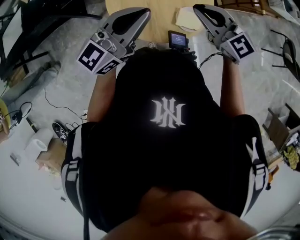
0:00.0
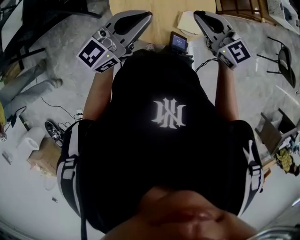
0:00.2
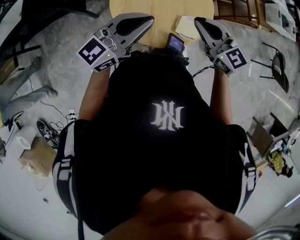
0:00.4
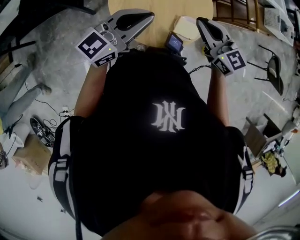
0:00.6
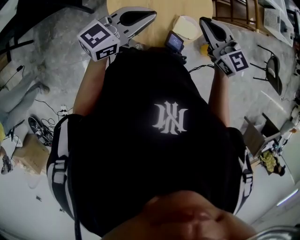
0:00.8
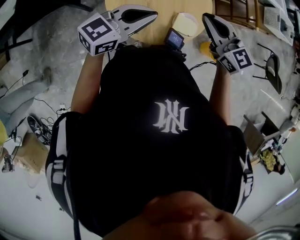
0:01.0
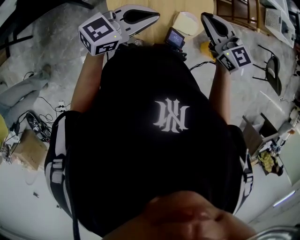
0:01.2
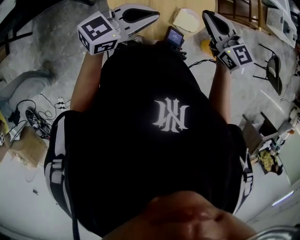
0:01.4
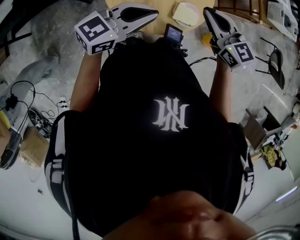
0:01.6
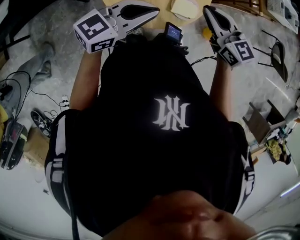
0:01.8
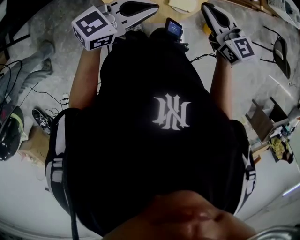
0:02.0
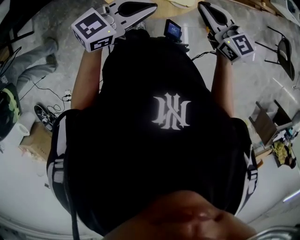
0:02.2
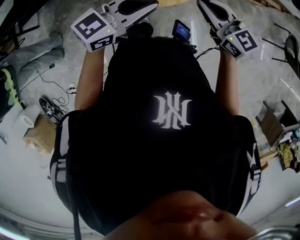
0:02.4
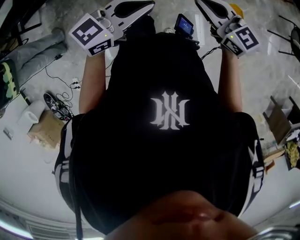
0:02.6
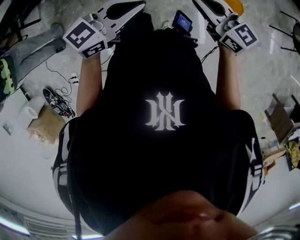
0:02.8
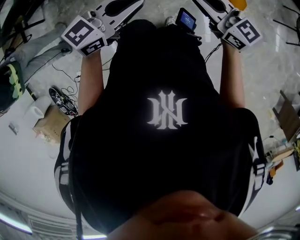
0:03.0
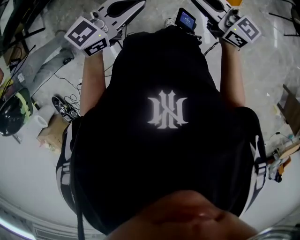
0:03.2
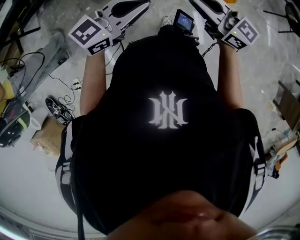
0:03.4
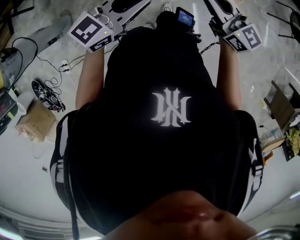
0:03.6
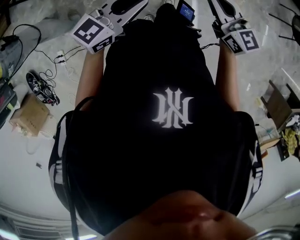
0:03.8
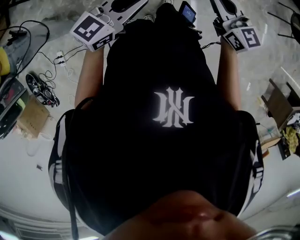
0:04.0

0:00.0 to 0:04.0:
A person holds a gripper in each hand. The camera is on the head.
0:00.0 to 0:01.4: The left gripper shifts roughly 10 cm downward, and turns by approximately 20 degrees.
0:01.4 to 0:02.6: Both grippers move backward and to the right, about 20 cm.
0:02.6 to 0:04.0: The two grippers go some 30 cm backward.

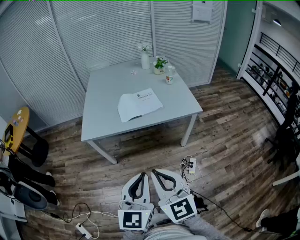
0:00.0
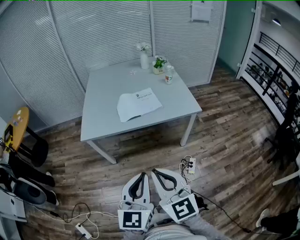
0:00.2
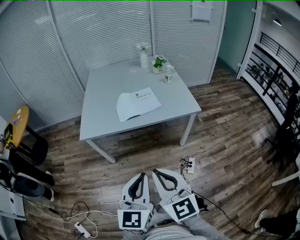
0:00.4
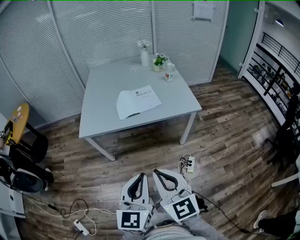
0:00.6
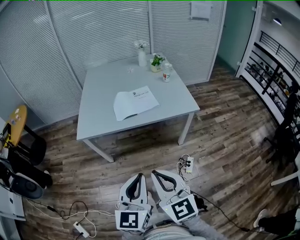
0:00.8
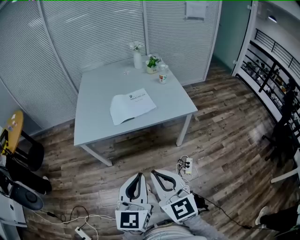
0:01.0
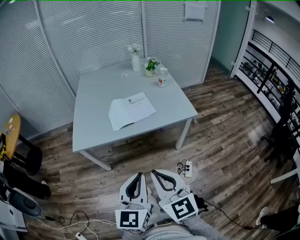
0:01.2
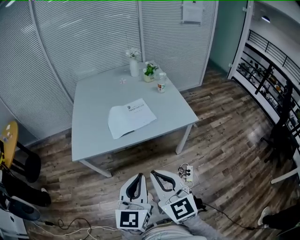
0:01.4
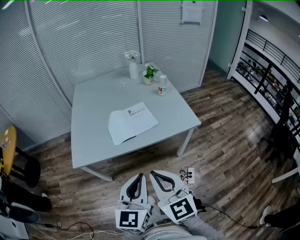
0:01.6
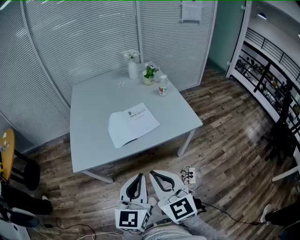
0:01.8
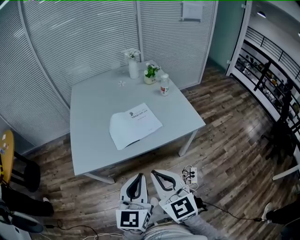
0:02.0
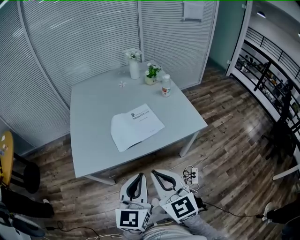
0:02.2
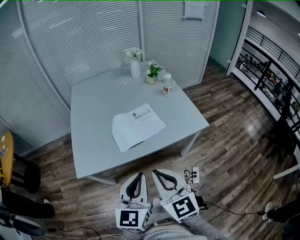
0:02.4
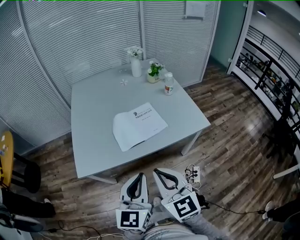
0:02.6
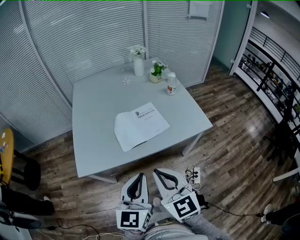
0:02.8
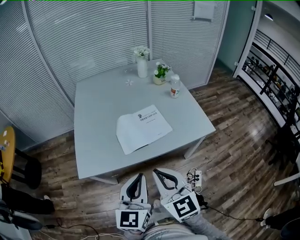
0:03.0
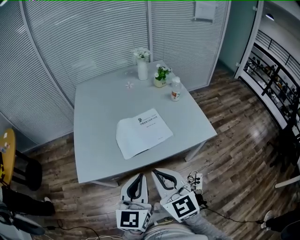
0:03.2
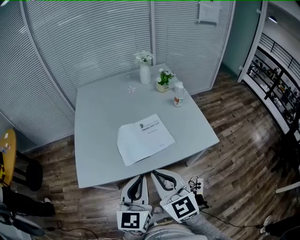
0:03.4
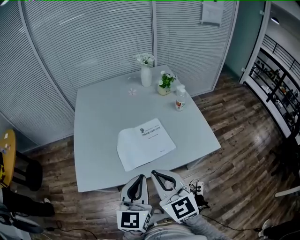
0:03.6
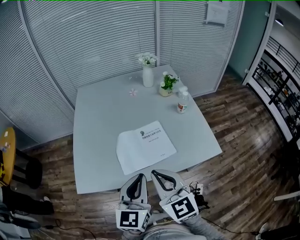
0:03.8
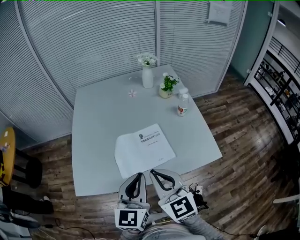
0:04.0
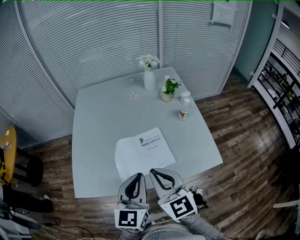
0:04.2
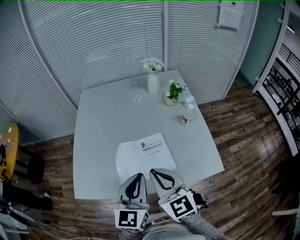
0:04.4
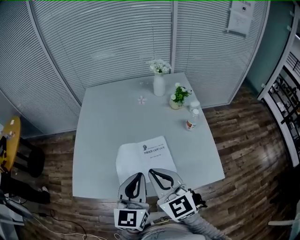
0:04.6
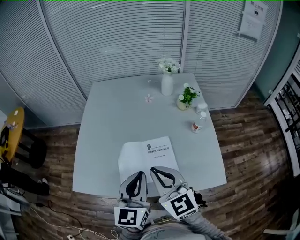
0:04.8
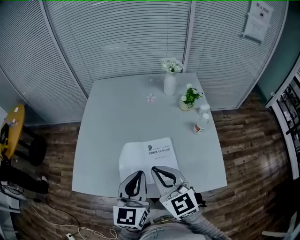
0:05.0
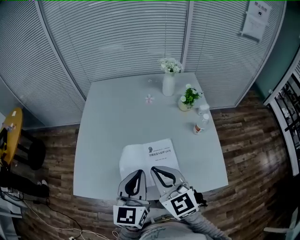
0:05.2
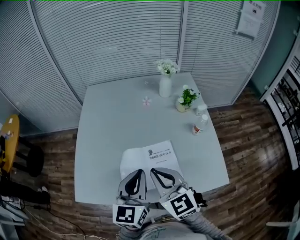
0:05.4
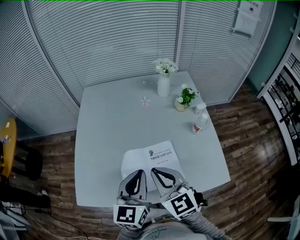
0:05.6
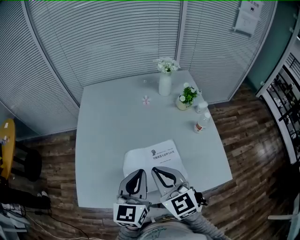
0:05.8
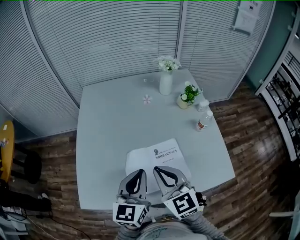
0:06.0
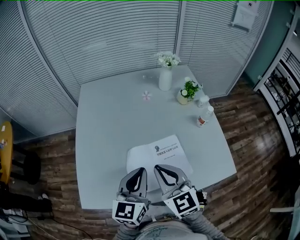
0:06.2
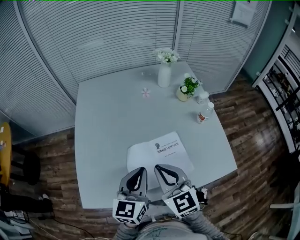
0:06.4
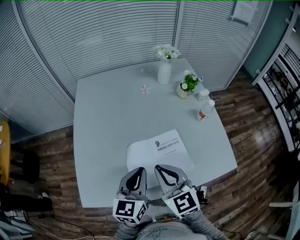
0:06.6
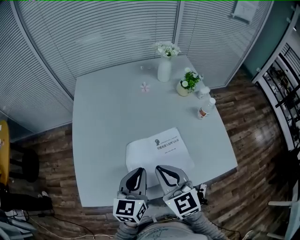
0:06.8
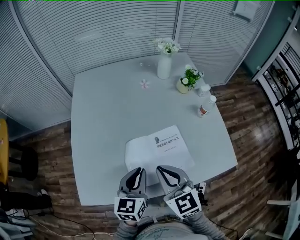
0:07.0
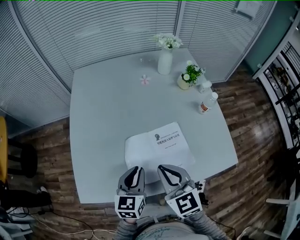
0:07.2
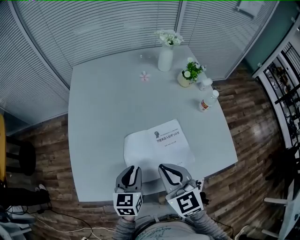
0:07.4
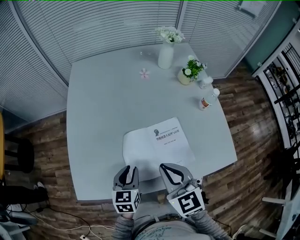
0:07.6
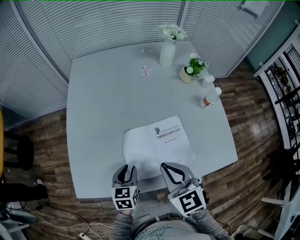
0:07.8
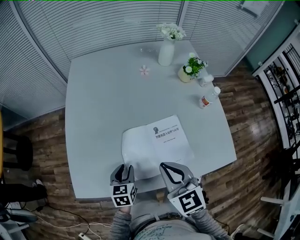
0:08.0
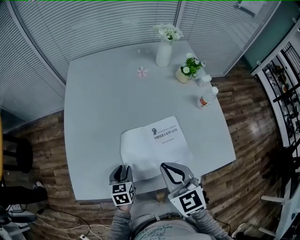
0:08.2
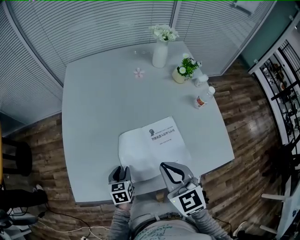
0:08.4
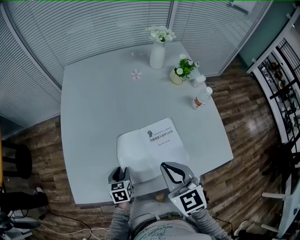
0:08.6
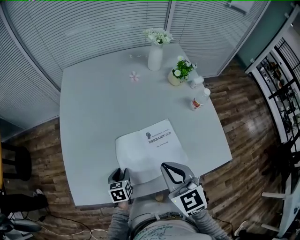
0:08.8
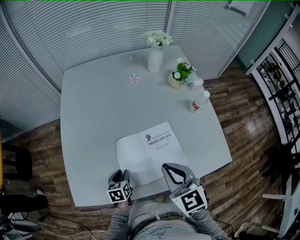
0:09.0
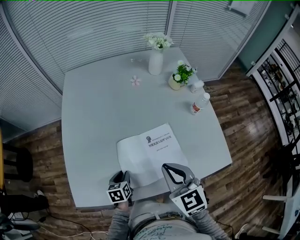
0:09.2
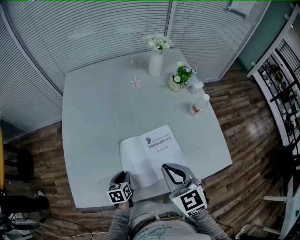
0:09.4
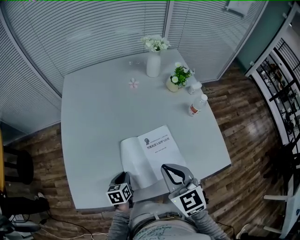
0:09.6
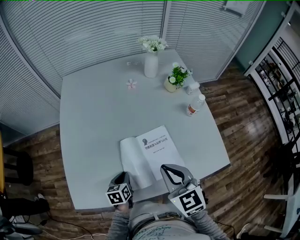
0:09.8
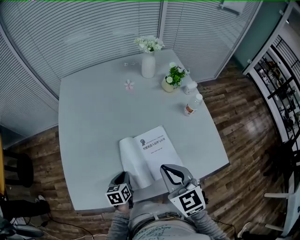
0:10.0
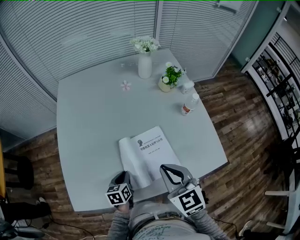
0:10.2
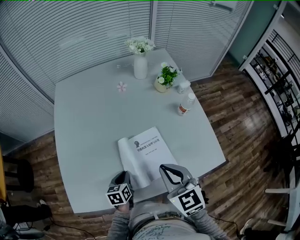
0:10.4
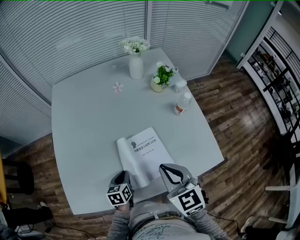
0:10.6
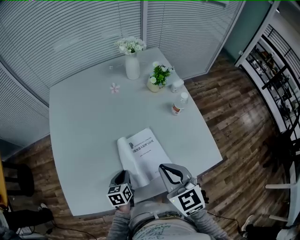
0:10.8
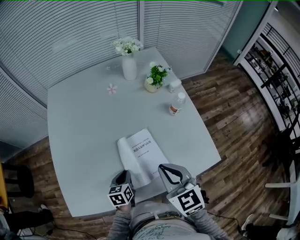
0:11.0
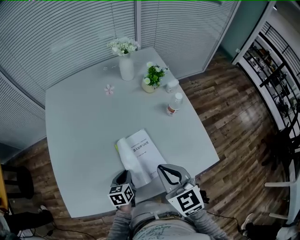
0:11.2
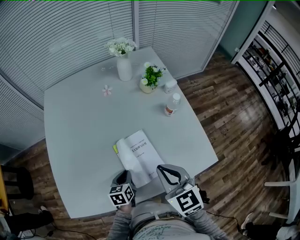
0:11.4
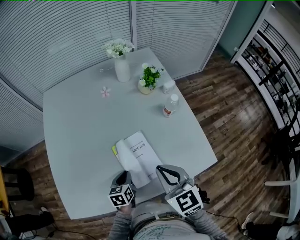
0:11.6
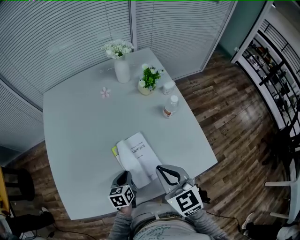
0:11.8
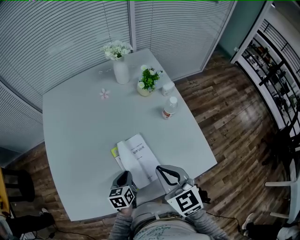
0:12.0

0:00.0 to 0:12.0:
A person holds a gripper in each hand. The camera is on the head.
0:00.0 to 0:01.6: Both grippers travel together forward, some 15 cm.
0:01.6 to 0:03.0: The grippers both shift forward and to the left by approximately 15 cm.
0:03.0 to 0:04.4: Both grippers travel together forward, about 25 cm.
0:04.4 to 0:06.0: Both grippers move forward and to the left, about 15 cm.
0:06.0 to 0:07.6: The left gripper goes roughly 20 cm downward, turns by about 30 degrees, and opens its fingers, while the right gripper shifts approximately 5 cm downward.
0:07.6 to 0:09.0: The left gripper shifts some 10 cm downward.
0:09.0 to 0:10.4: Both grippers move to the right, about 5 cm. The left gripper closes its fingers.
0:10.4 to 0:12.0: Both grippers move to the right, roughly 10 cm.

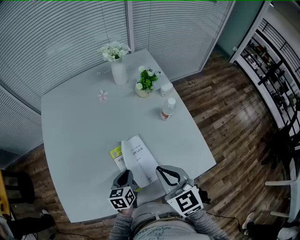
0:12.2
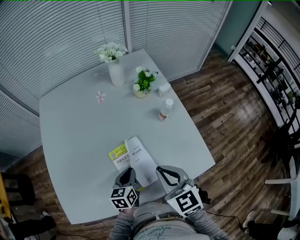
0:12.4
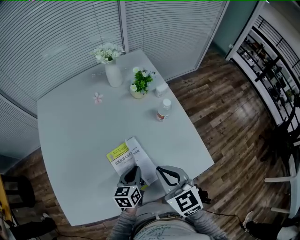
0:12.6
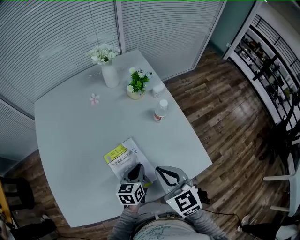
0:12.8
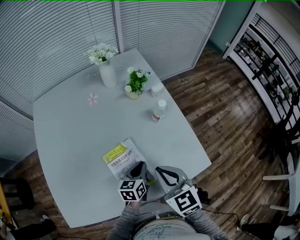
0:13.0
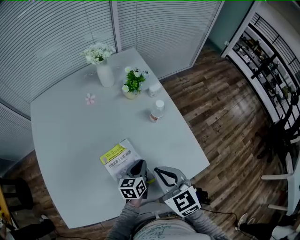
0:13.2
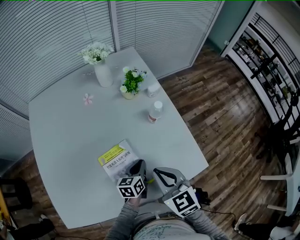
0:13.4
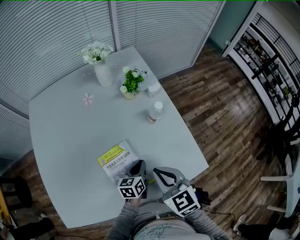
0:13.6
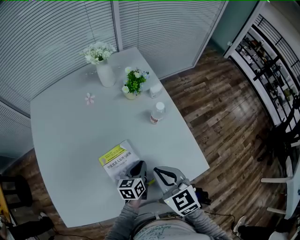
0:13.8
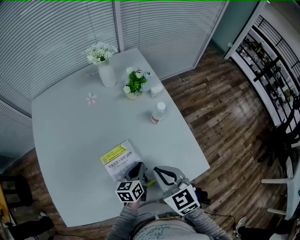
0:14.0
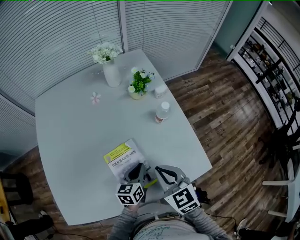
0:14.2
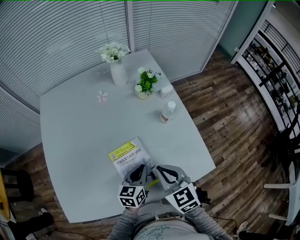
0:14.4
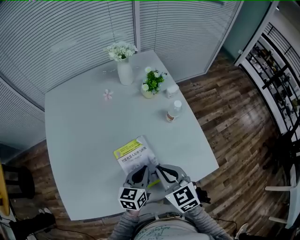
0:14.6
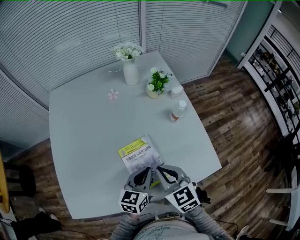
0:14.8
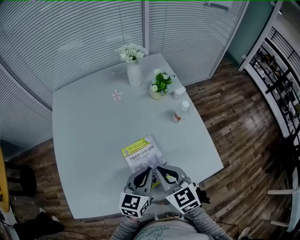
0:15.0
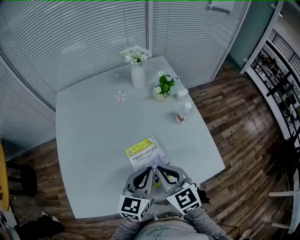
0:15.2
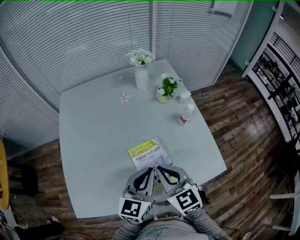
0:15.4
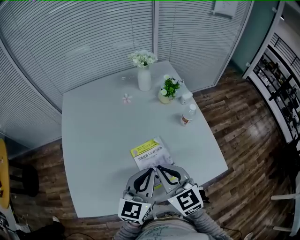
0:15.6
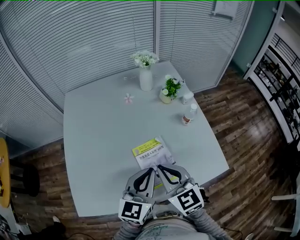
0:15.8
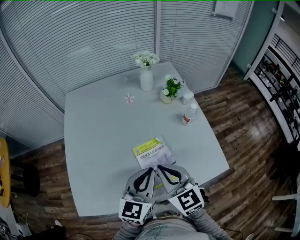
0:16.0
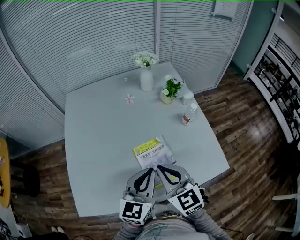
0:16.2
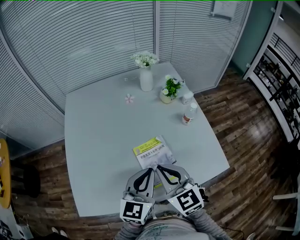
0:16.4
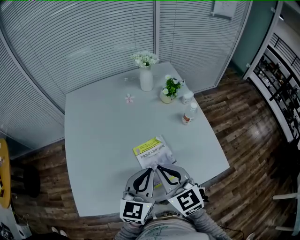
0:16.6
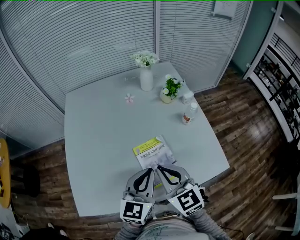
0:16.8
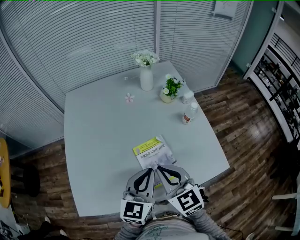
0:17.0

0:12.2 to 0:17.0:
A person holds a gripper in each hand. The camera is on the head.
0:12.2 to 0:13.8: The right gripper changes place by approximately 5 cm. Meanwhile the left gripper is displaced to the right and forward by about 15 cm.
0:13.8 to 0:15.4: The right gripper is displaced to the left by roughly 10 cm; the left gripper goes about 25 cm upward and to the left, and rotates approximately 30 degrees.
0:15.4 to 0:17.0: The grippers make only small movements.

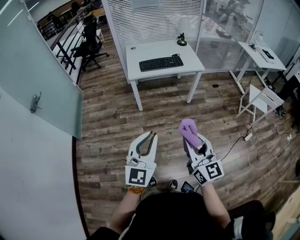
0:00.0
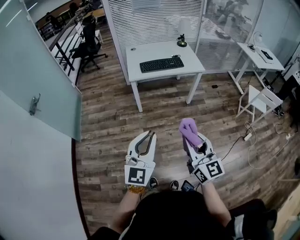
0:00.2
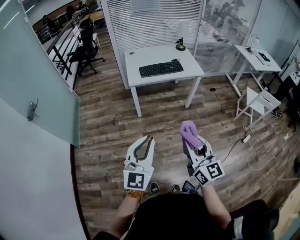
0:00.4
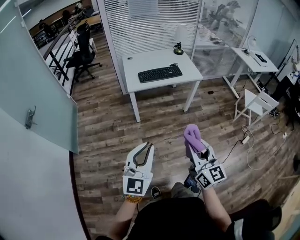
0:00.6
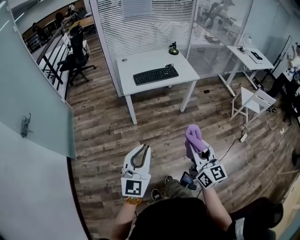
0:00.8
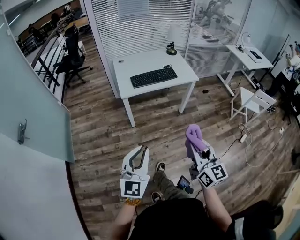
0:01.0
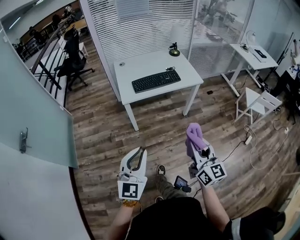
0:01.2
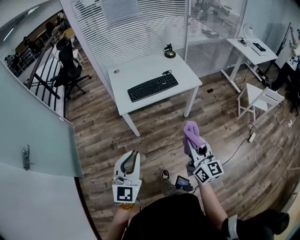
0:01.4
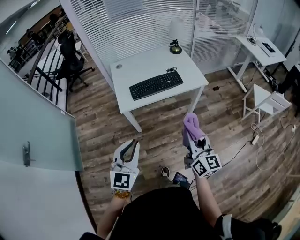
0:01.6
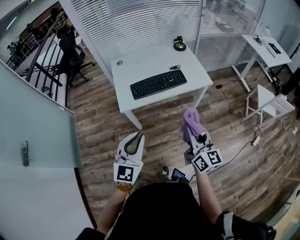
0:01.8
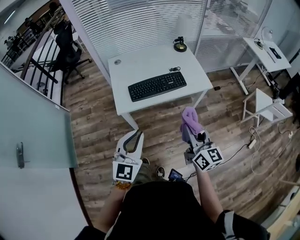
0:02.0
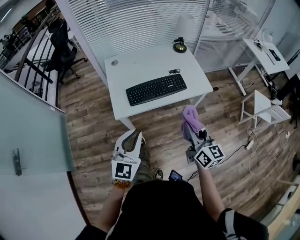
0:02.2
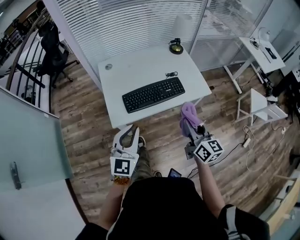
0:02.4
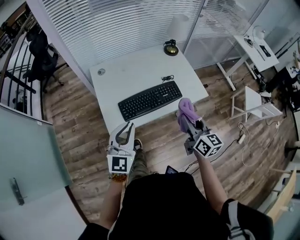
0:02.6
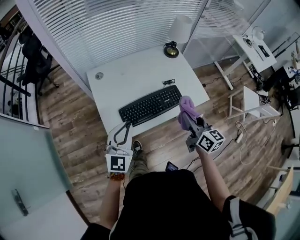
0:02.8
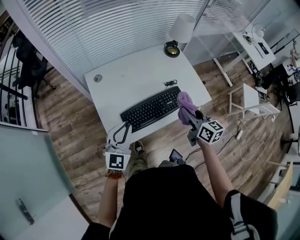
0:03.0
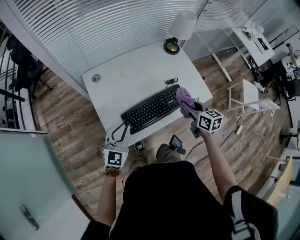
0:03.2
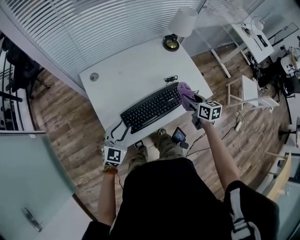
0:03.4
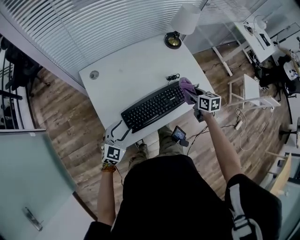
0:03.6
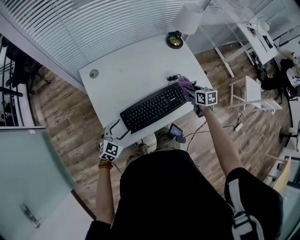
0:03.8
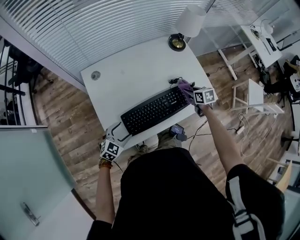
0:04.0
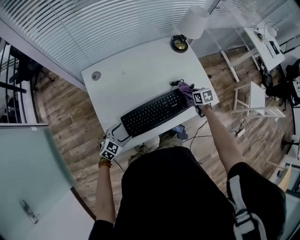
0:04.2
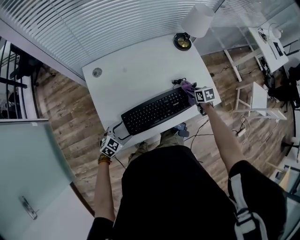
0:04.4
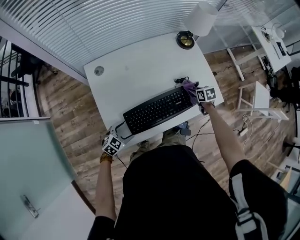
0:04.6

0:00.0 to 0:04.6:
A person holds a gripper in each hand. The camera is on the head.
0:00.0 to 0:01.6: Both grippers travel together forward, approximately 35 cm.
0:01.6 to 0:03.0: The two grippers travel together, forward, approximately 40 cm. The right gripper swivels approximately 20 degrees.
0:03.0 to 0:04.6: The left gripper travels downward by some 30 cm, tips its fingers downward by approximately 30 degrees, and opens its fingers, while the right gripper shifts about 35 cm downward and forward, and points its fingers about 40 degrees further downward.
